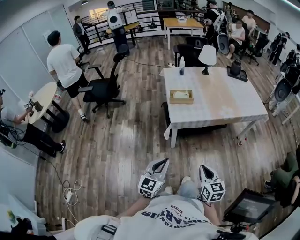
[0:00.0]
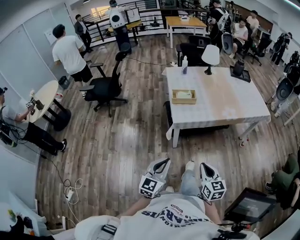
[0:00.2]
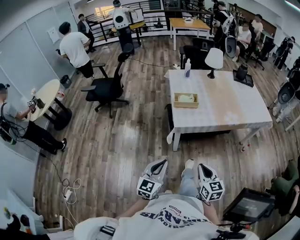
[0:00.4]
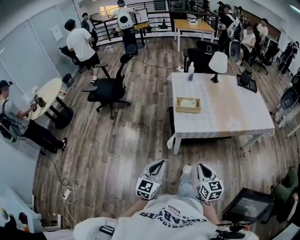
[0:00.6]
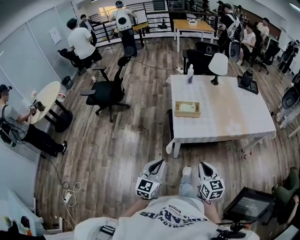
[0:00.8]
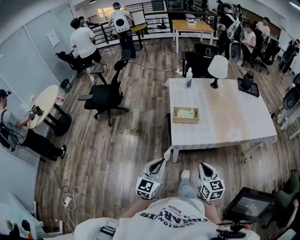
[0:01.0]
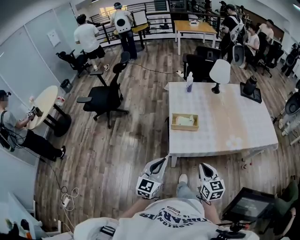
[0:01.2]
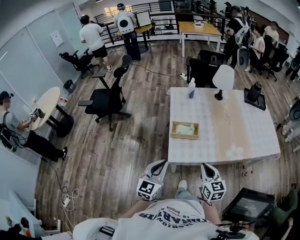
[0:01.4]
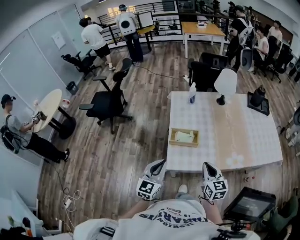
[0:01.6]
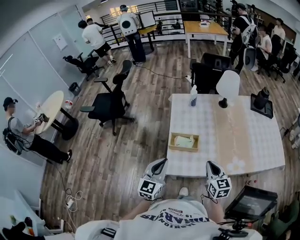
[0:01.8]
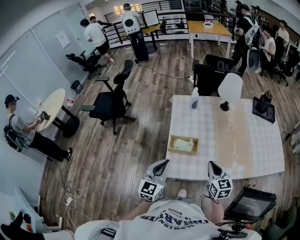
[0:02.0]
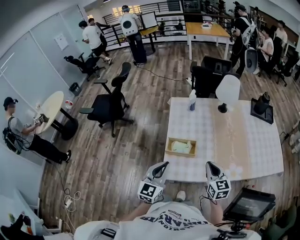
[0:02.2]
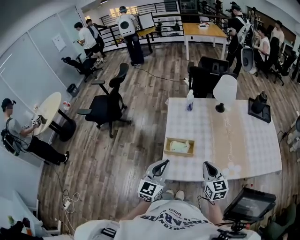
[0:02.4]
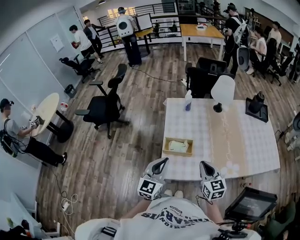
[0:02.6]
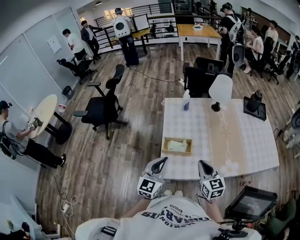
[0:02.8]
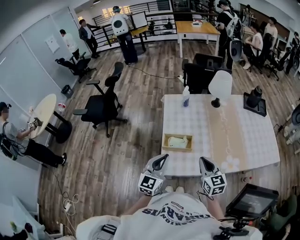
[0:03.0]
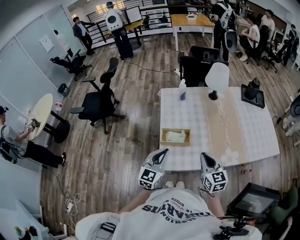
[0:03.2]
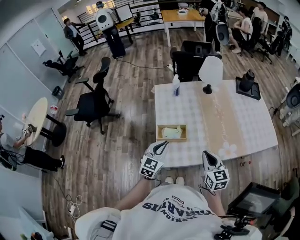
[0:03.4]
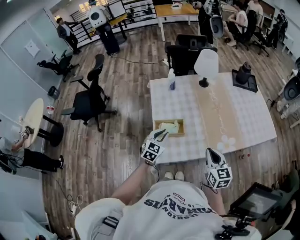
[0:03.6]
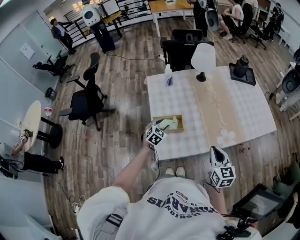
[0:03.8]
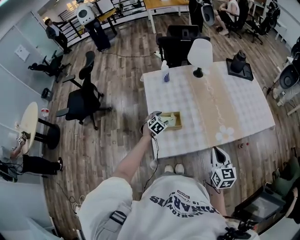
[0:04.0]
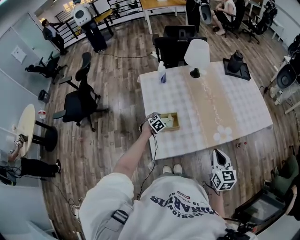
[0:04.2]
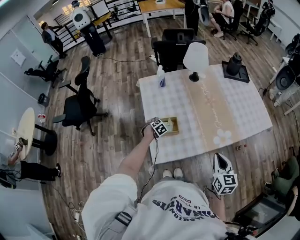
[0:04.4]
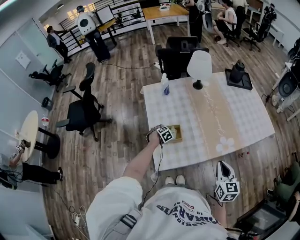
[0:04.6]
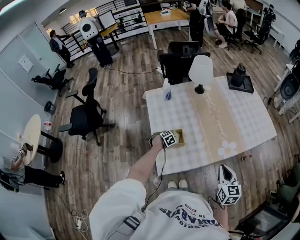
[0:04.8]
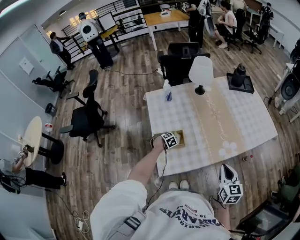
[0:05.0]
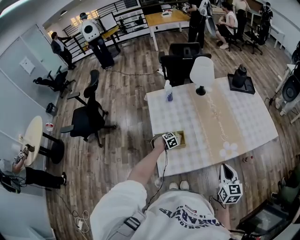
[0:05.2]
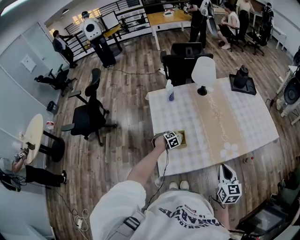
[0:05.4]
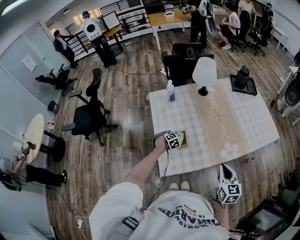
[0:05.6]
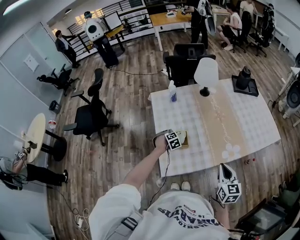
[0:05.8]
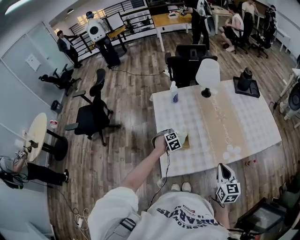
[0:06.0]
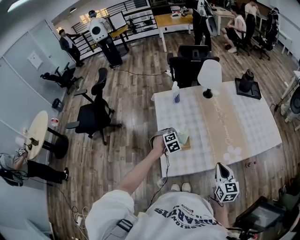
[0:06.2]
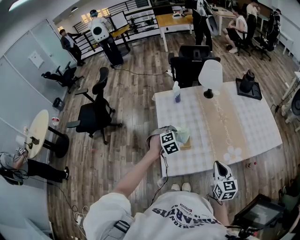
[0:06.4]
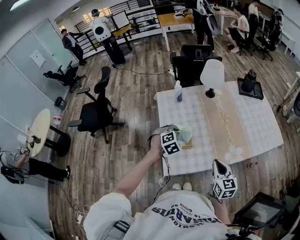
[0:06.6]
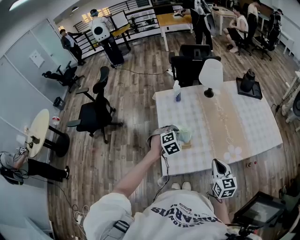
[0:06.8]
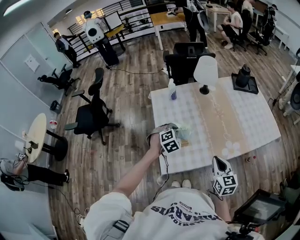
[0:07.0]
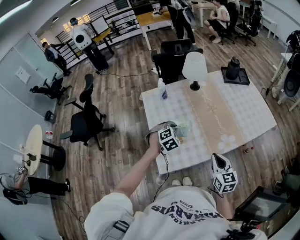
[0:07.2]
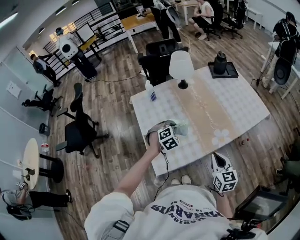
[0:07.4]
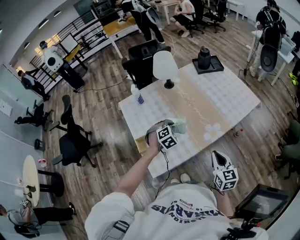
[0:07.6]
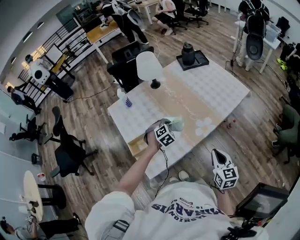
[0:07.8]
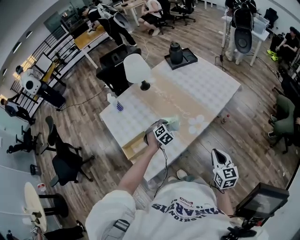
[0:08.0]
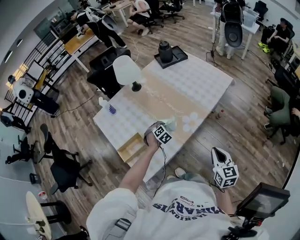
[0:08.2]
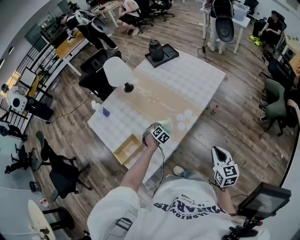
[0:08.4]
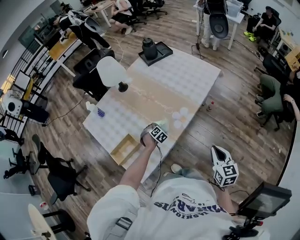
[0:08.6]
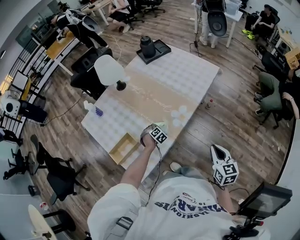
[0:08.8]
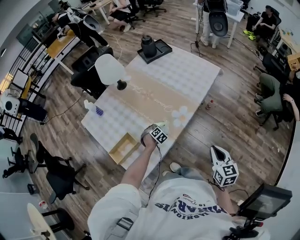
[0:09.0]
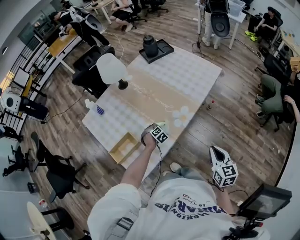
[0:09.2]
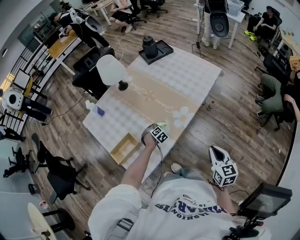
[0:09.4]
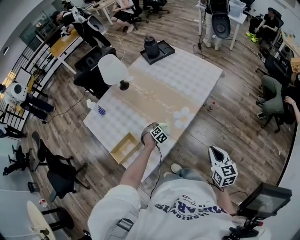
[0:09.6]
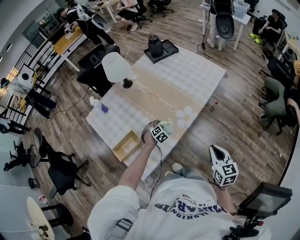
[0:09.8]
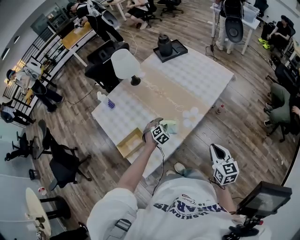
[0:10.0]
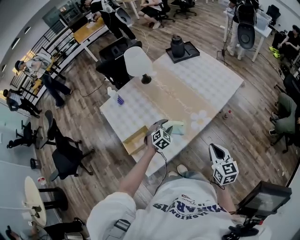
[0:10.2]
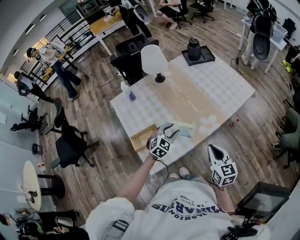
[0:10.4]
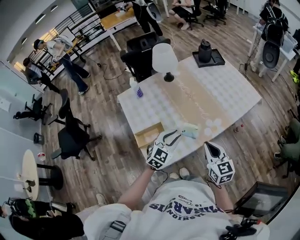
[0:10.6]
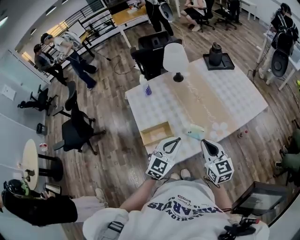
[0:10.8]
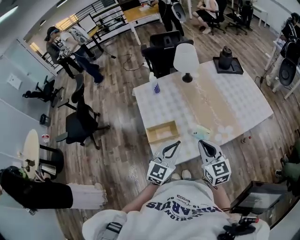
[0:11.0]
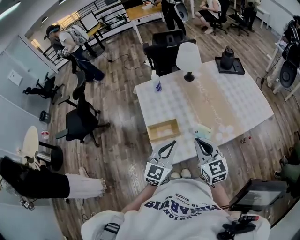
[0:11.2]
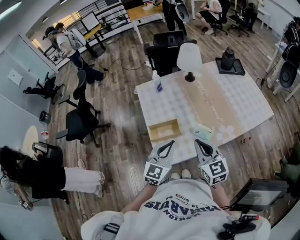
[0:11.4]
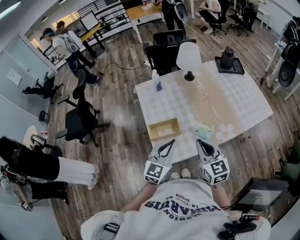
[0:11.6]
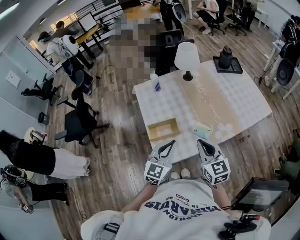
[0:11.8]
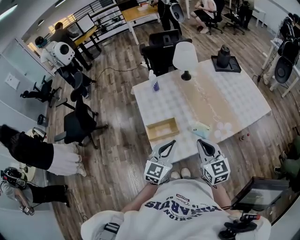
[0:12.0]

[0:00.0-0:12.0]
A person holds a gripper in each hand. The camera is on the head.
0:00.0 to 0:01.6: The grippers both shift forward by some 40 cm.
0:01.6 to 0:03.0: The two grippers go roughly 5 cm forward.
0:03.0 to 0:04.4: The left gripper goes about 40 cm downward and forward, tilts its fingers about 60 degrees downward, and opens up, while the right gripper shifts some 15 cm to the right, and turns by some 30 degrees.
0:04.4 to 0:06.0: The left gripper is displaced upward by roughly 10 cm, and closes.
0:06.0 to 0:07.6: The right gripper travels to the right by roughly 5 cm. The left gripper goes some 20 cm to the right and upward, and swivels approximately 20 degrees.
0:07.6 to 0:09.0: The left gripper goes roughly 25 cm downward and to the right; the right gripper heads to the right and backward, covering roughly 15 cm, and changes its angle by roughly 20 degrees.
0:09.0 to 0:10.4: The left gripper travels upward by some 25 cm, tips its fingers upward by about 30 degrees, and opens, while the right gripper is displaced to the left and forward by roughly 15 cm, and turns by approximately 20 degrees.
0:10.4 to 0:12.0: The right gripper shifts about 15 cm to the left, and rotates some 20 degrees; the left gripper shifts approximately 20 cm upward, to the left and backward, rotates about 40 degrees, and closes its fingers.

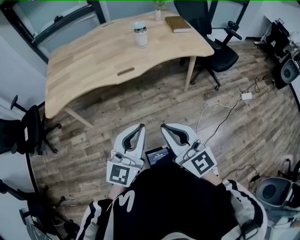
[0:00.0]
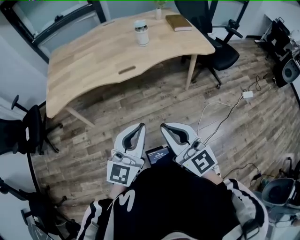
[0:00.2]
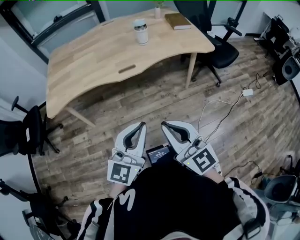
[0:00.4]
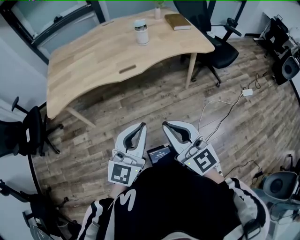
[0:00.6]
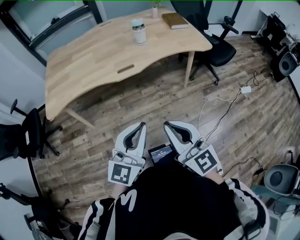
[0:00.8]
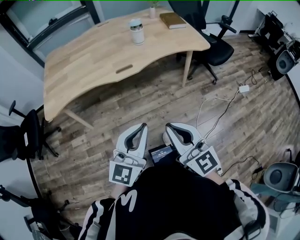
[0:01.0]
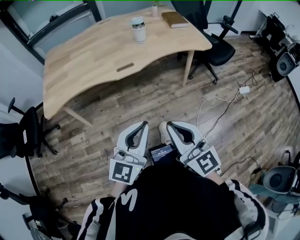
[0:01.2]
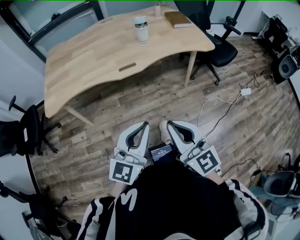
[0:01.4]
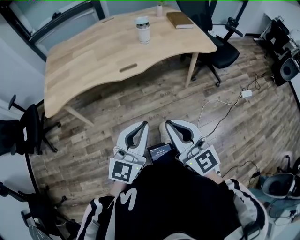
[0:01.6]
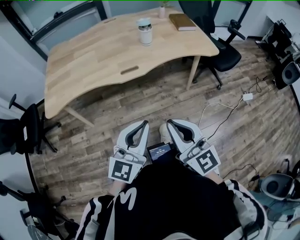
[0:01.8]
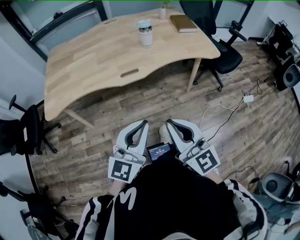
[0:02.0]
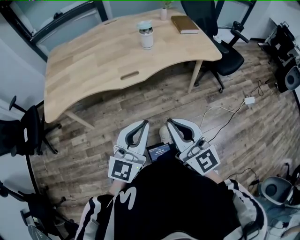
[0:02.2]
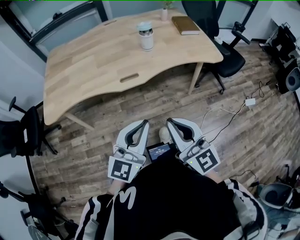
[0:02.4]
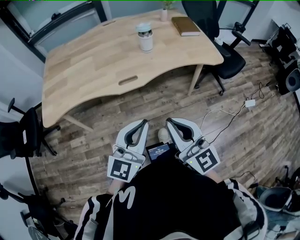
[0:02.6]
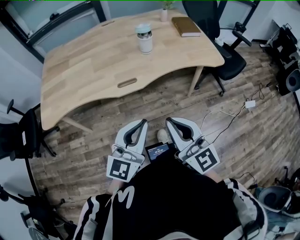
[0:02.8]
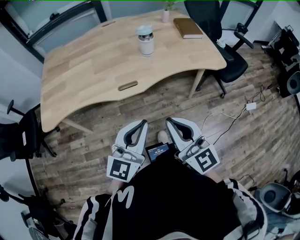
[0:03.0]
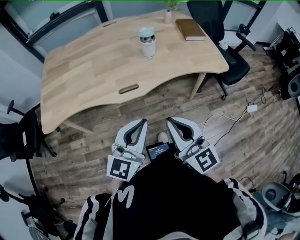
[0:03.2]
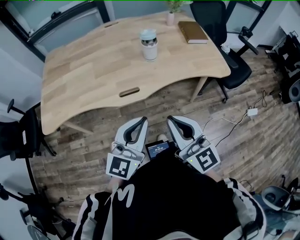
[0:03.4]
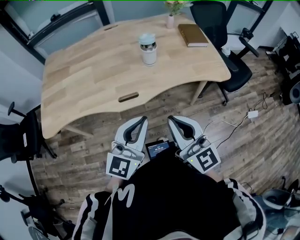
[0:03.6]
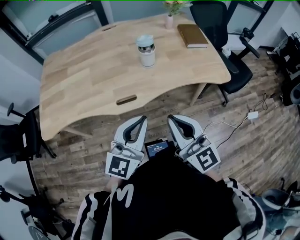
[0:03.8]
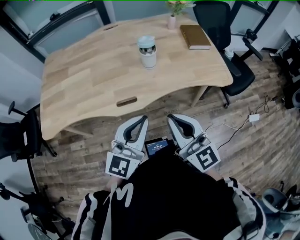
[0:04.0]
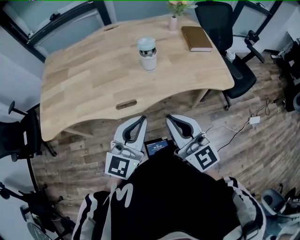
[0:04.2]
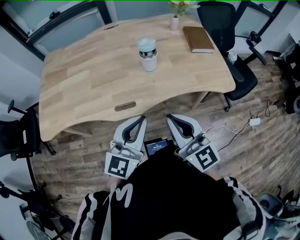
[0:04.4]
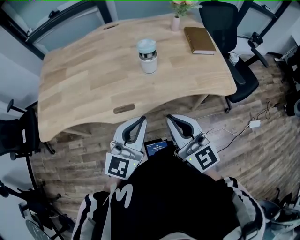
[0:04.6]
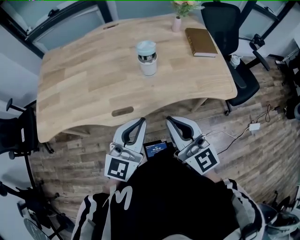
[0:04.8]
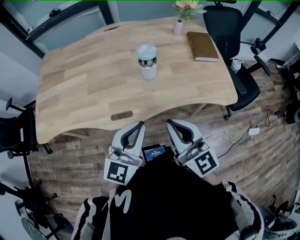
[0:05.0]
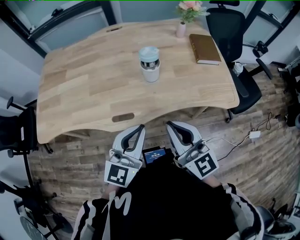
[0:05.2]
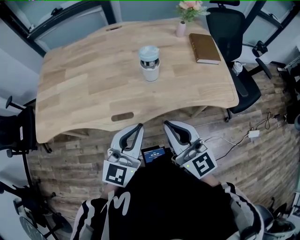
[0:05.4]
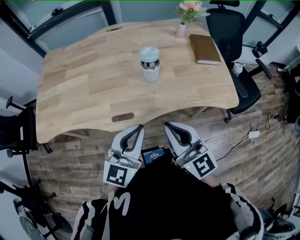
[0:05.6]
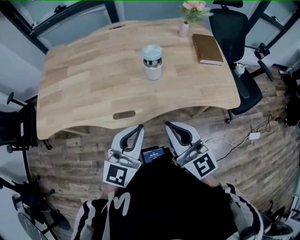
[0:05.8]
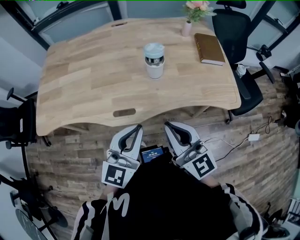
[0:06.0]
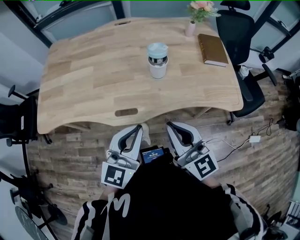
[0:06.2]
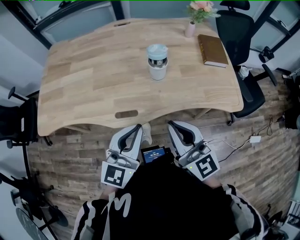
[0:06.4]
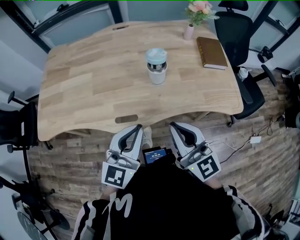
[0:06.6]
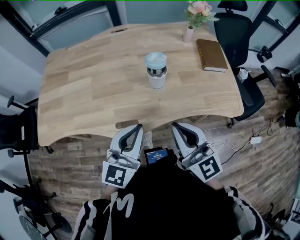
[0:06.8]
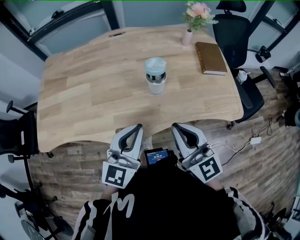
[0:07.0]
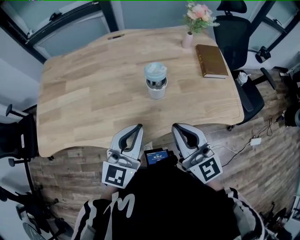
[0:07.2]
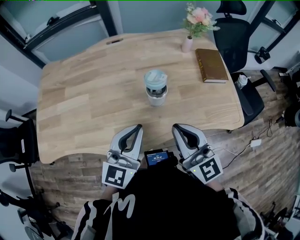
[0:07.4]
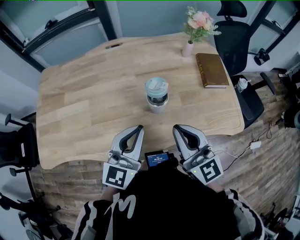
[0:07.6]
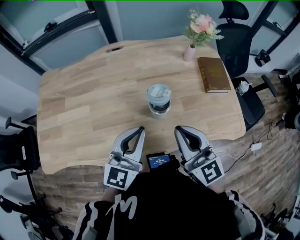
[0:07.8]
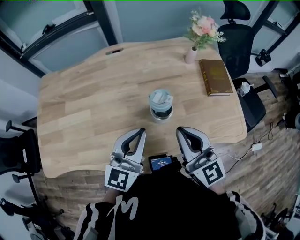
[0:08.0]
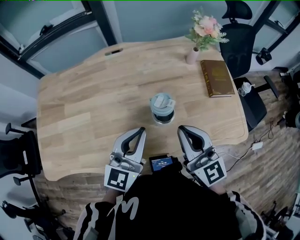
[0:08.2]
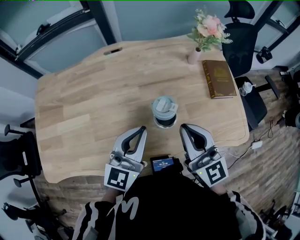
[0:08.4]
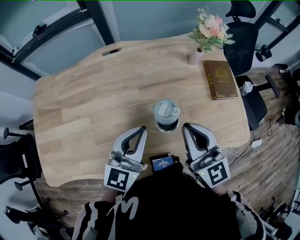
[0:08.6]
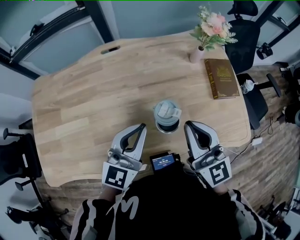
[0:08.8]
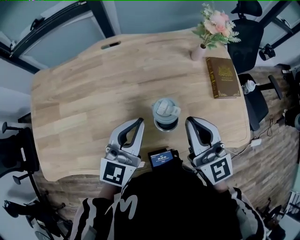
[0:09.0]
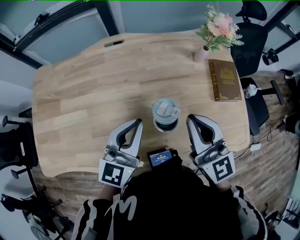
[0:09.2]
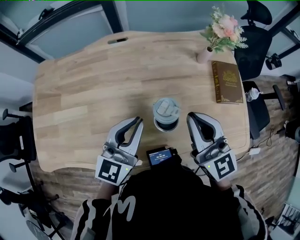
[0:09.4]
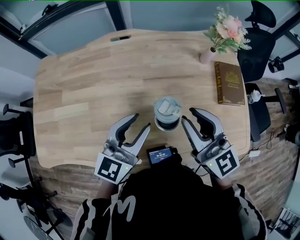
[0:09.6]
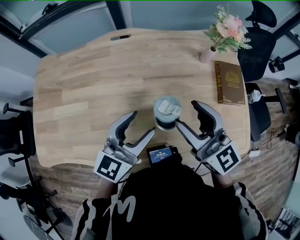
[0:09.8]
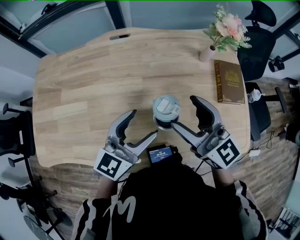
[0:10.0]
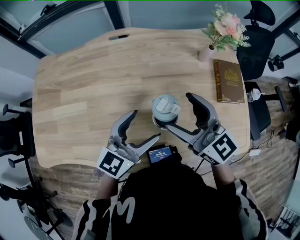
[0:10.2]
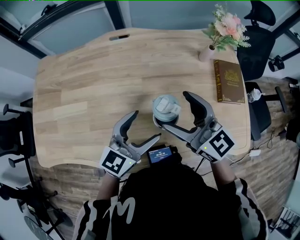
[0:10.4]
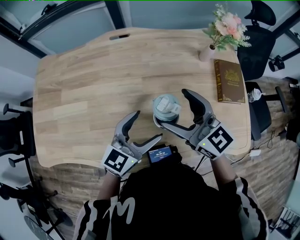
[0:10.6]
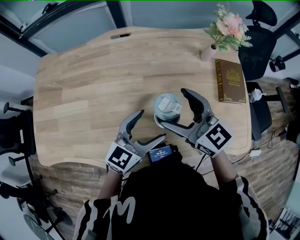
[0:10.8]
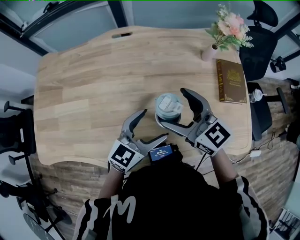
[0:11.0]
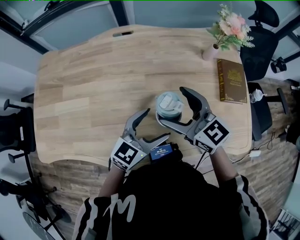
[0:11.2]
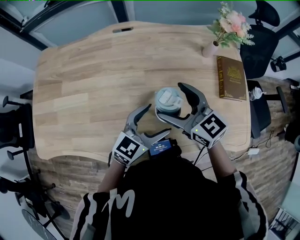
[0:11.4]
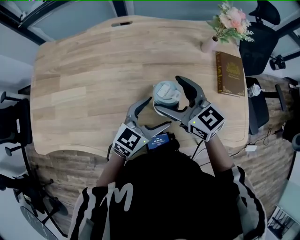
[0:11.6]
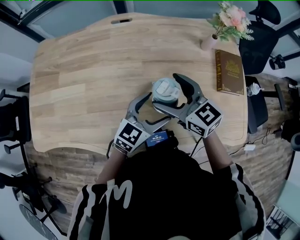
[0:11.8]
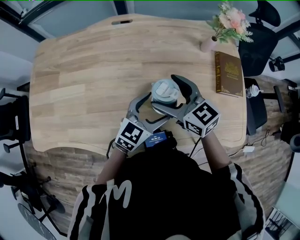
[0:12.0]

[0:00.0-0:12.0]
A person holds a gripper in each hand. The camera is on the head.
0:00.0 to 0:01.6: The grippers stay close to where they were, moving slightly.
0:01.6 to 0:03.0: Both grippers move forward, some 15 cm.
0:03.0 to 0:04.4: The grippers both shift forward by about 15 cm.
0:04.4 to 0:06.0: The grippers stay close to where they were, moving slightly.
0:06.0 to 0:07.6: The two grippers go some 15 cm forward.
0:07.6 to 0:09.0: Both grippers move forward, about 15 cm.
0:09.0 to 0:10.4: The right gripper moves roughly 5 cm, rotates about 30 degrees, and opens up, while the left gripper shifts approximately 5 cm downward, and opens.
0:10.4 to 0:12.0: The left gripper heads downward and to the right, covering roughly 10 cm, while the right gripper heads downward, covering some 5 cm.
